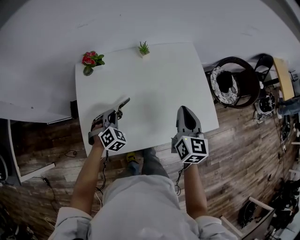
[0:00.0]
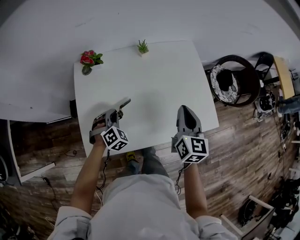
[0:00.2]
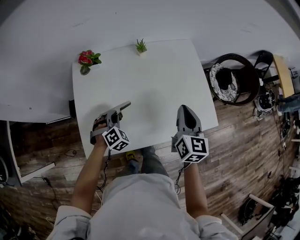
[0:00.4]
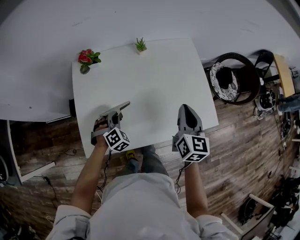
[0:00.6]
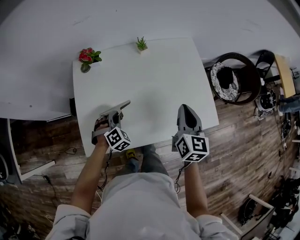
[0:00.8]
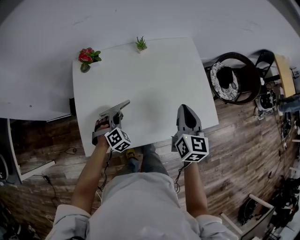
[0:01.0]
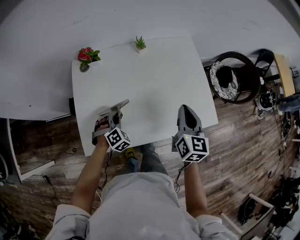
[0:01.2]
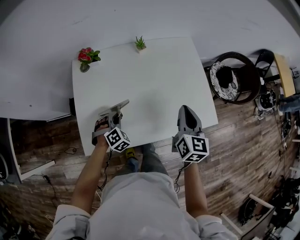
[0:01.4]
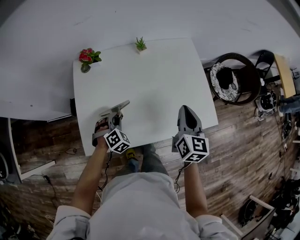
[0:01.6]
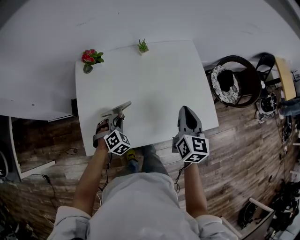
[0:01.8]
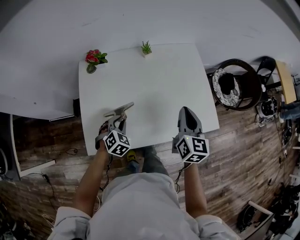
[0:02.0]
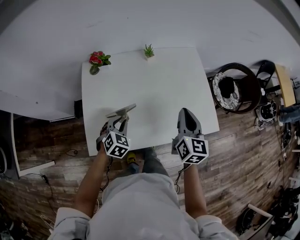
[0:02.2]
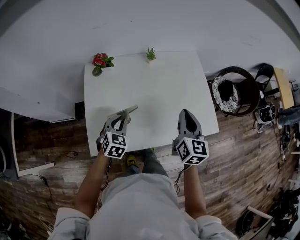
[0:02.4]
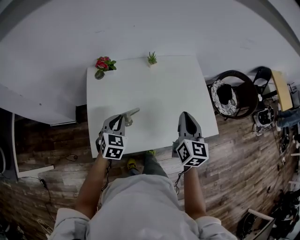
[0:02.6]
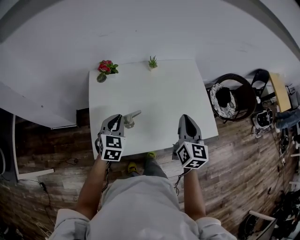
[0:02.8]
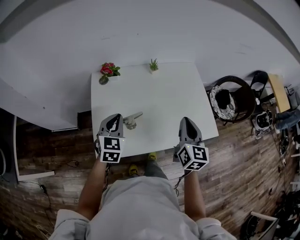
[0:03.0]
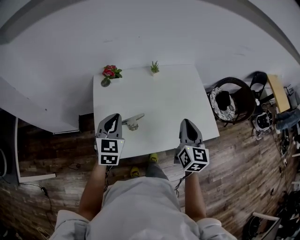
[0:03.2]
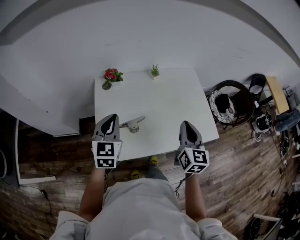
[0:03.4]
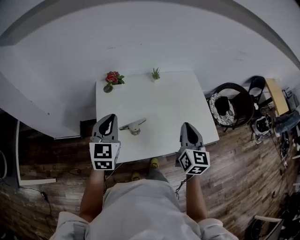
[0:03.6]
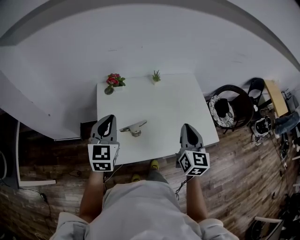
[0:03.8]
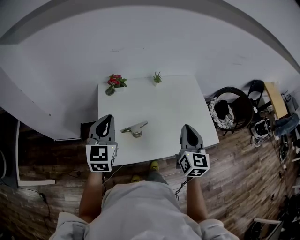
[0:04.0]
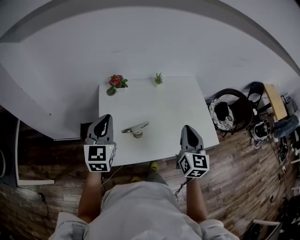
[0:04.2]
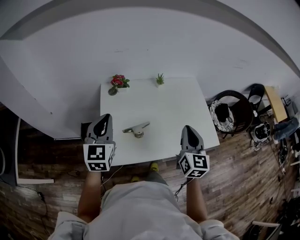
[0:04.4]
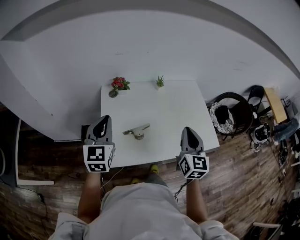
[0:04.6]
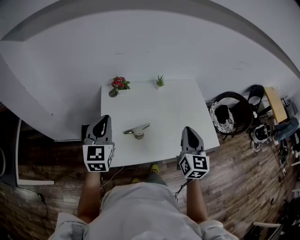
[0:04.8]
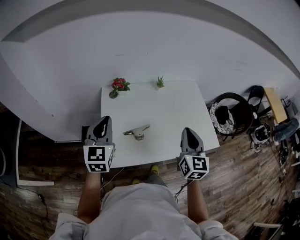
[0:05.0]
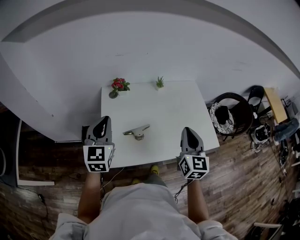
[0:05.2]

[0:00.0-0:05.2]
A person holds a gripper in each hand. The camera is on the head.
0:00.0 to 0:01.8: The left gripper ends up roughly 5 cm from where it was.
0:01.8 to 0:03.4: The left gripper heads upward, covering about 25 cm, and angles its fingers upward, by some 40 degrees. Meanwhile the right gripper shifts roughly 10 cm to the left, upward and backward.
0:03.4 to 0:05.2: The left gripper shifts some 10 cm to the left and upward.

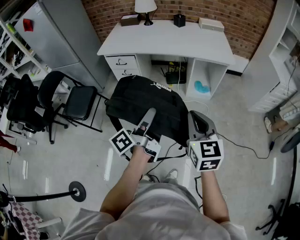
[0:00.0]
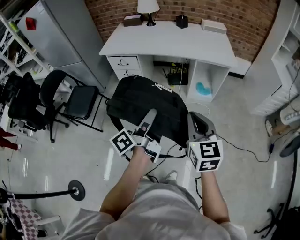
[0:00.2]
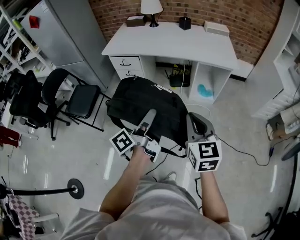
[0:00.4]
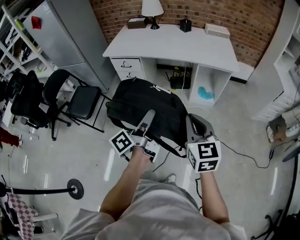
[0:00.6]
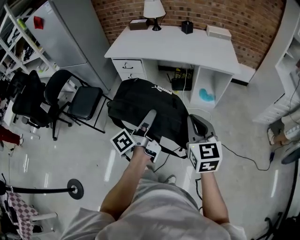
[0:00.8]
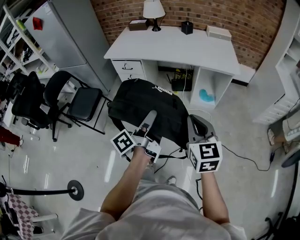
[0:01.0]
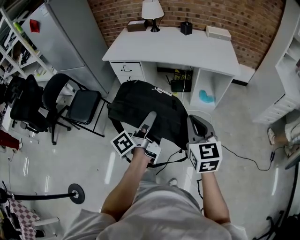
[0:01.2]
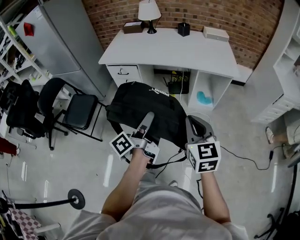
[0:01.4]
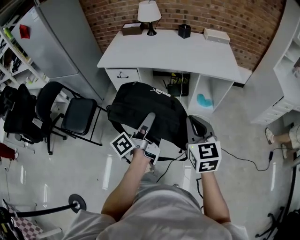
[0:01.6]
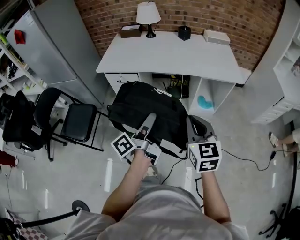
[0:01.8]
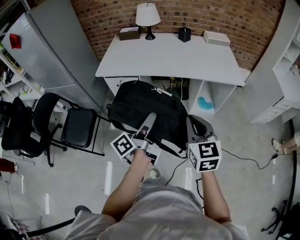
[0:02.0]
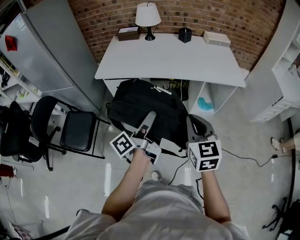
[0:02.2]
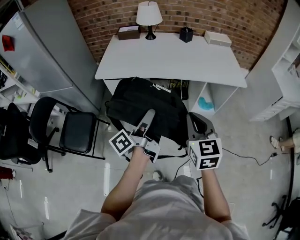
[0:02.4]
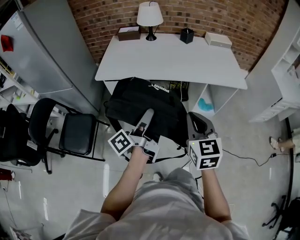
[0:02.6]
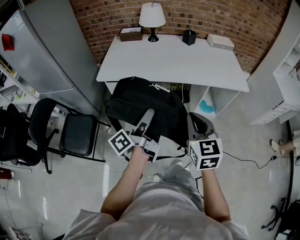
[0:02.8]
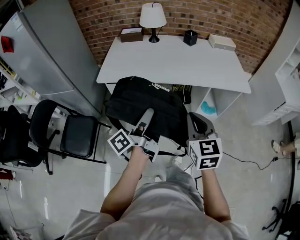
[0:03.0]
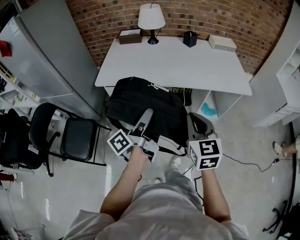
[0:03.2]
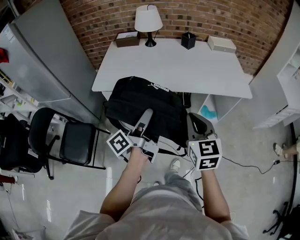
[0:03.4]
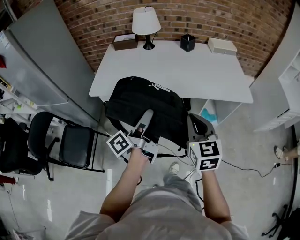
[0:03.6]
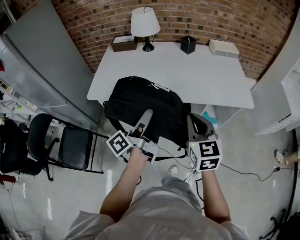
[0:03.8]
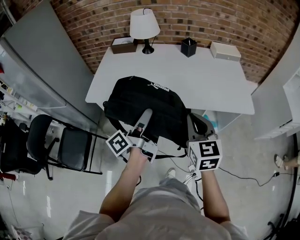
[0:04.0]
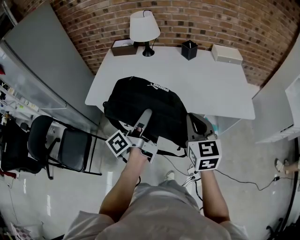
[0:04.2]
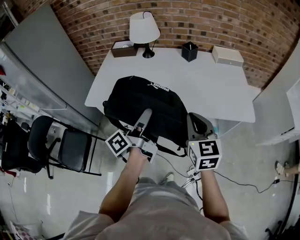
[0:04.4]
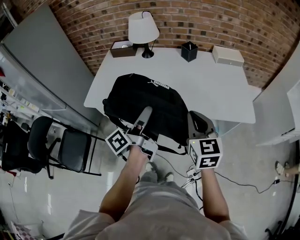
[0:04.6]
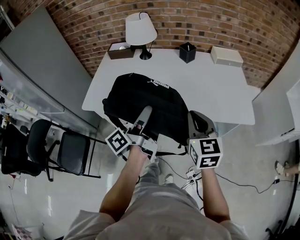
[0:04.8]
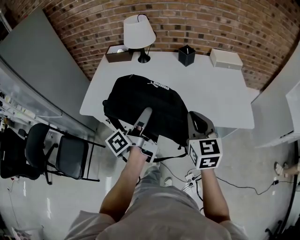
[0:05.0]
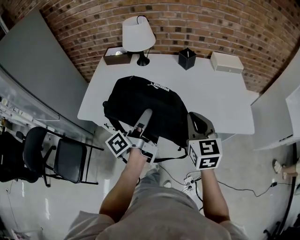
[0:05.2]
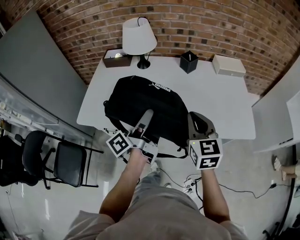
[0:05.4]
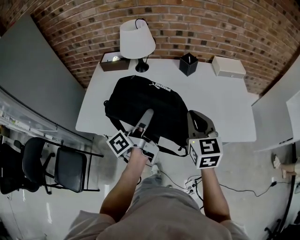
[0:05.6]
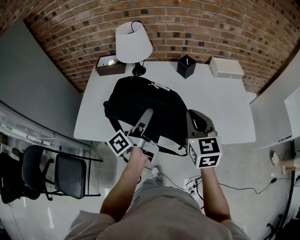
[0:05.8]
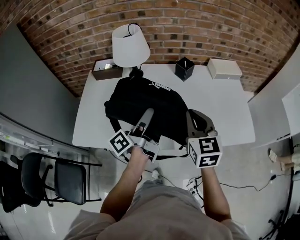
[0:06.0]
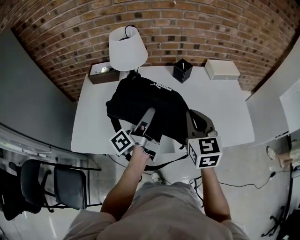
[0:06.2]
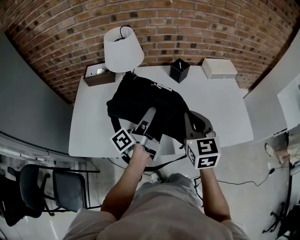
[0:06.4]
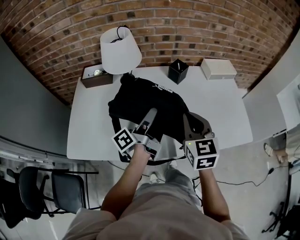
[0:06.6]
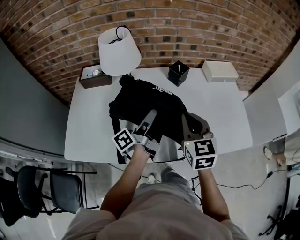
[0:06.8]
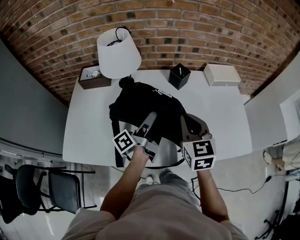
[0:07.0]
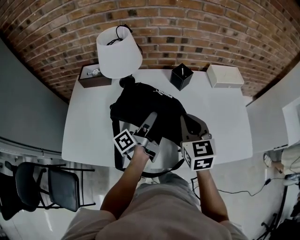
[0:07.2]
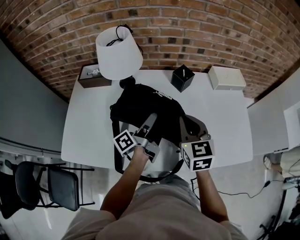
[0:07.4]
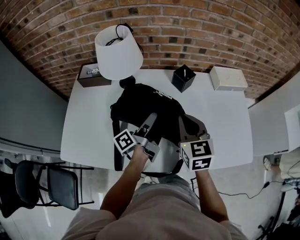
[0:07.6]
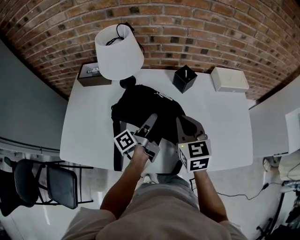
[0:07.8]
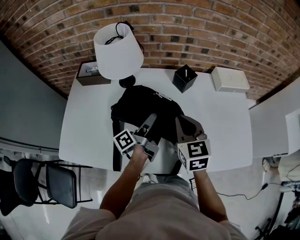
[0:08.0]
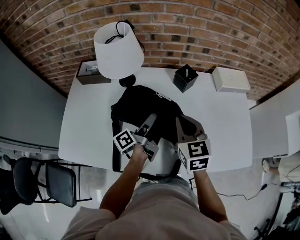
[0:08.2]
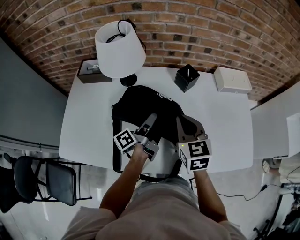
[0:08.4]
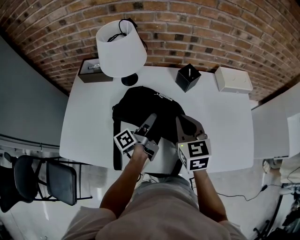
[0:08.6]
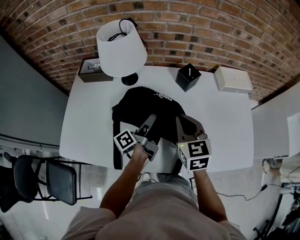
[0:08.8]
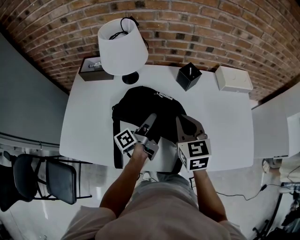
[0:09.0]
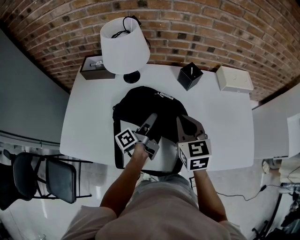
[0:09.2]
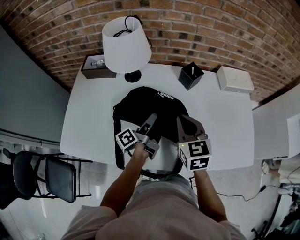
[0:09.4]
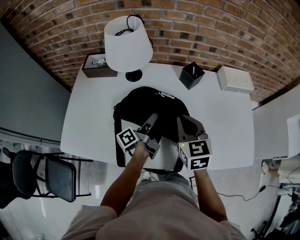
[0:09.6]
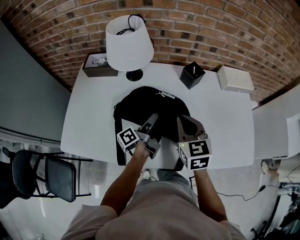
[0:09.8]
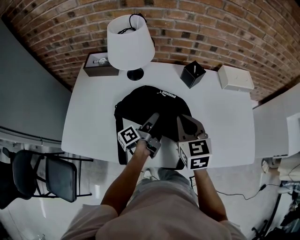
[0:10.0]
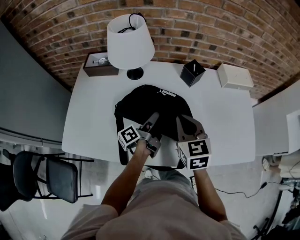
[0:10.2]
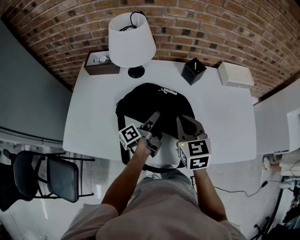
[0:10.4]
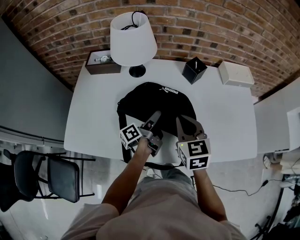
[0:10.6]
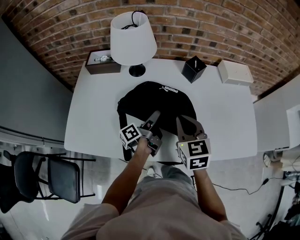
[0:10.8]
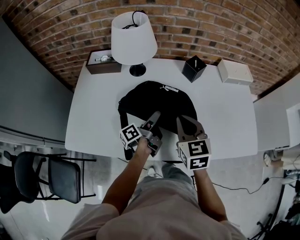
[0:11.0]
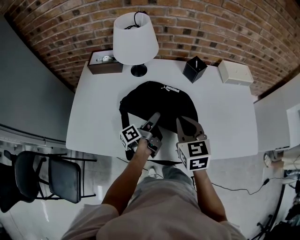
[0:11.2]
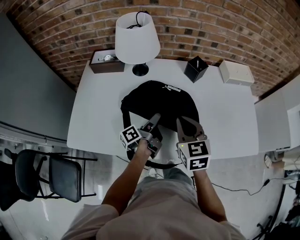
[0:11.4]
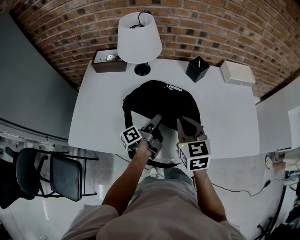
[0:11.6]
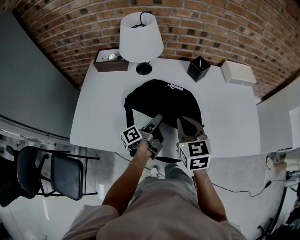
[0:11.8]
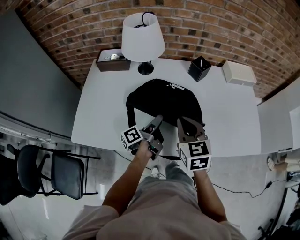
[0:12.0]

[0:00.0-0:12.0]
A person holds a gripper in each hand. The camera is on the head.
0:00.0 to 0:01.6: The right gripper shifts by roughly 10 cm.
0:01.6 to 0:03.0: The right gripper changes place by about 20 cm.
0:03.0 to 0:04.4: The right gripper moves approximately 20 cm.
0:04.4 to 0:06.0: The right gripper moves approximately 25 cm.
0:06.0 to 0:07.6: The right gripper shifts by roughly 15 cm.
0:10.4 to 0:12.0: The right gripper ends up some 5 cm from where it was.

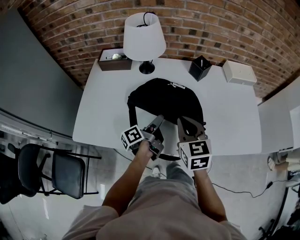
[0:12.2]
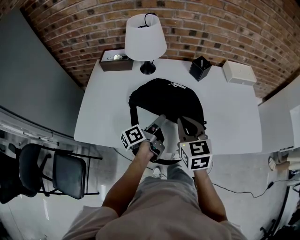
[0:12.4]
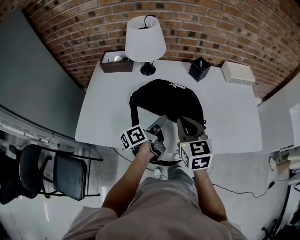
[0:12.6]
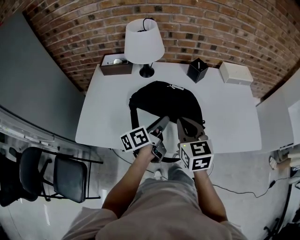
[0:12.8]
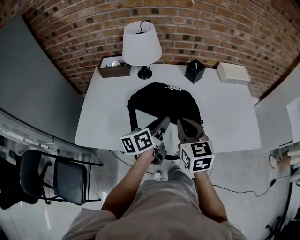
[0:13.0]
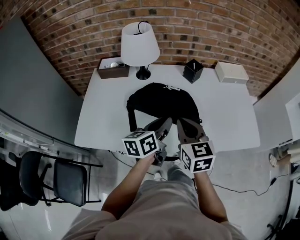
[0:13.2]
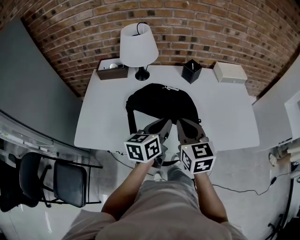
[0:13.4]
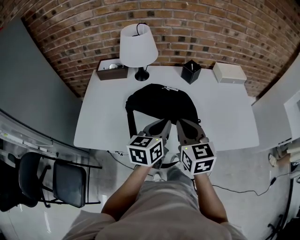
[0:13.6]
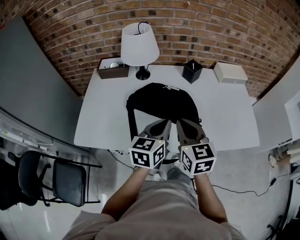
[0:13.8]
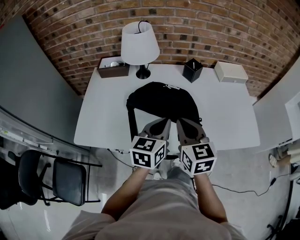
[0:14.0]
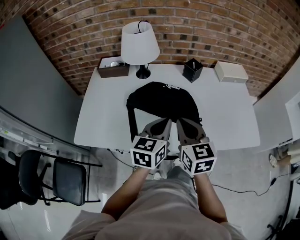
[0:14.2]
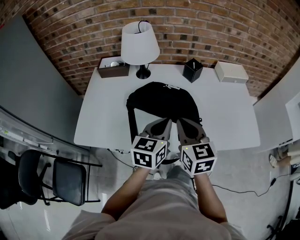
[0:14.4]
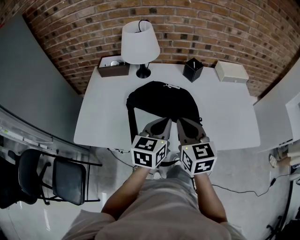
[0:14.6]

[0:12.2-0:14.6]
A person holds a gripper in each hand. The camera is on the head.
0:12.2 to 0:13.4: The right gripper shifts by approximately 5 cm.

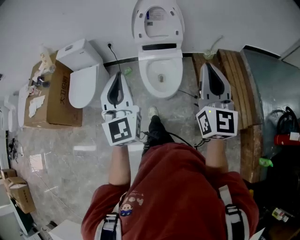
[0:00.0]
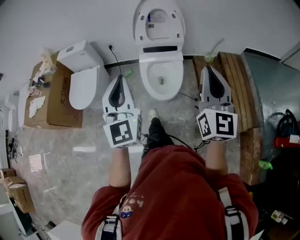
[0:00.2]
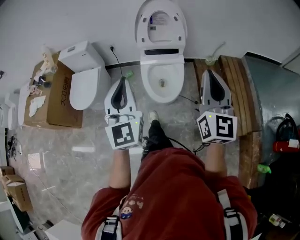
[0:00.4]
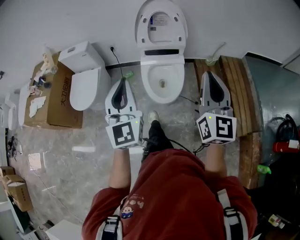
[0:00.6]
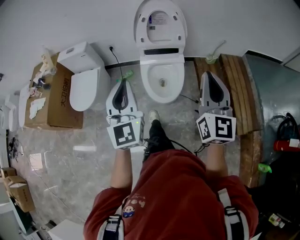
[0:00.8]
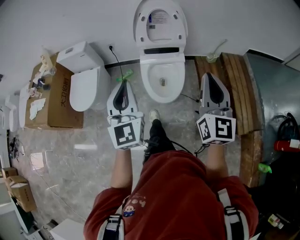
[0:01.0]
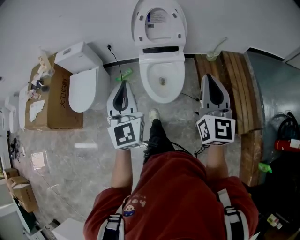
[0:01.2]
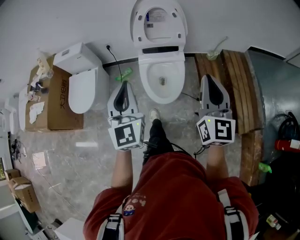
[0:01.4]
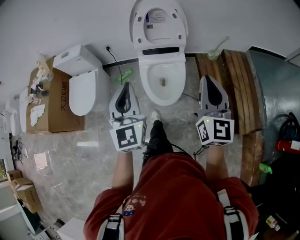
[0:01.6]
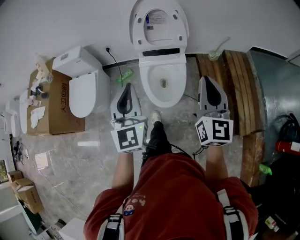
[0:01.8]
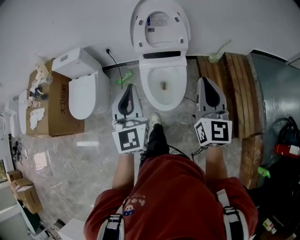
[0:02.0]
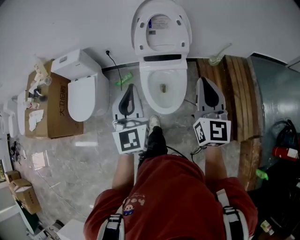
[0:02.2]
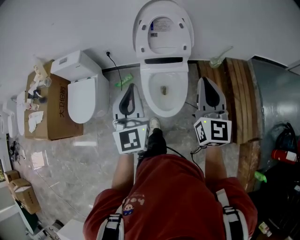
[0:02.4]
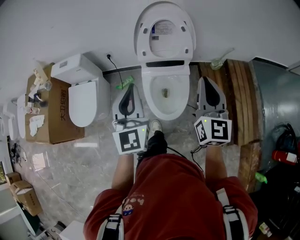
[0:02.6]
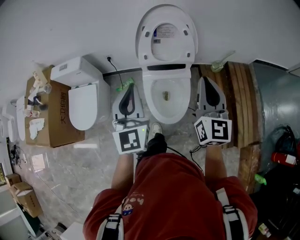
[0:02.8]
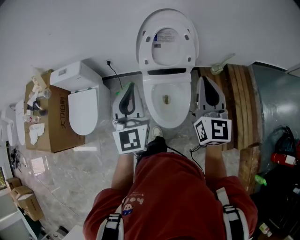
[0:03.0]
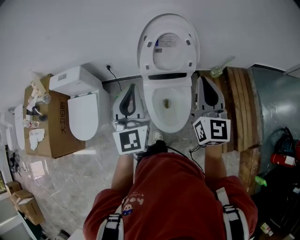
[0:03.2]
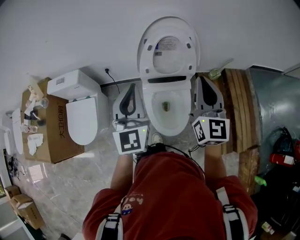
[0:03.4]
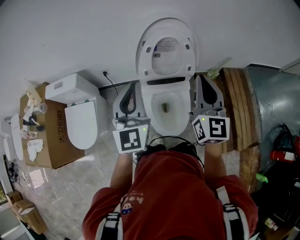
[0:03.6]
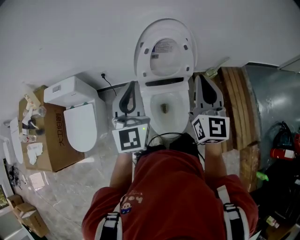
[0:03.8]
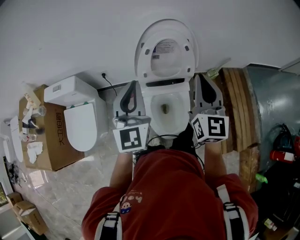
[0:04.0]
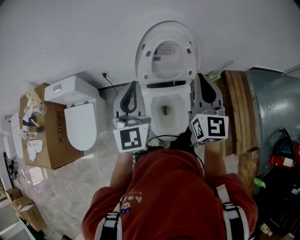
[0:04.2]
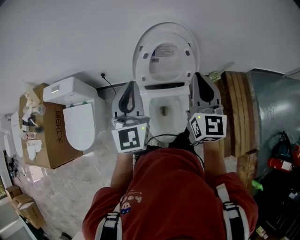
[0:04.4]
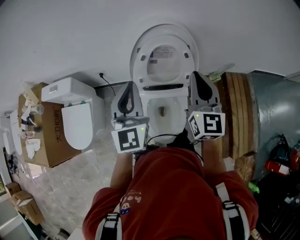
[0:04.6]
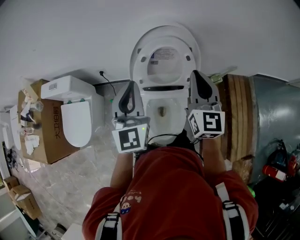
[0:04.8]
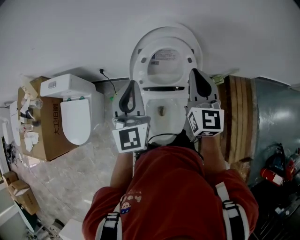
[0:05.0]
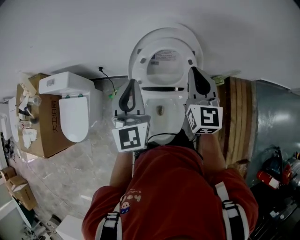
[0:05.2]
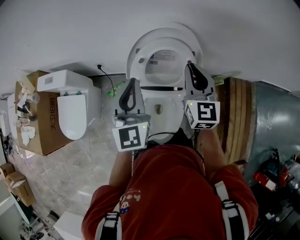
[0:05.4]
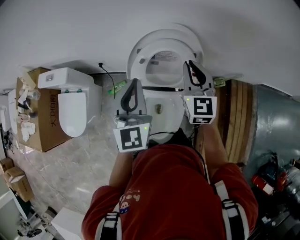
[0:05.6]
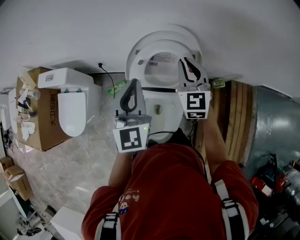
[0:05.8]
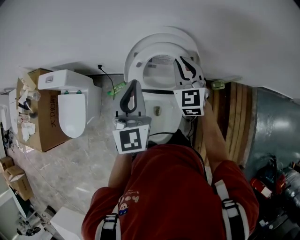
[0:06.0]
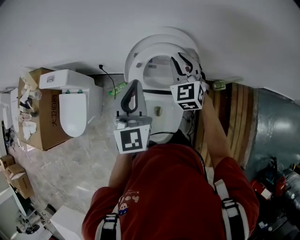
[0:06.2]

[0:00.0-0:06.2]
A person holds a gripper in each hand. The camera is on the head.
0:00.0 to 0:01.6: The right gripper shifts some 10 cm forward. Meanwhile the left gripper moves forward and downward, roughly 10 cm.
0:01.6 to 0:03.2: Both grippers move forward, approximately 20 cm.
0:03.2 to 0:04.6: The grippers both shift forward by roughly 15 cm.
0:04.6 to 0:06.2: The right gripper travels forward and downward by some 20 cm, and swivels about 30 degrees, while the left gripper goes some 10 cm forward and to the right.
